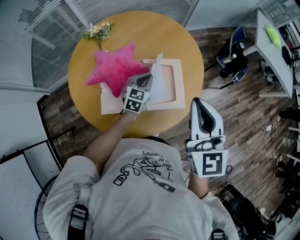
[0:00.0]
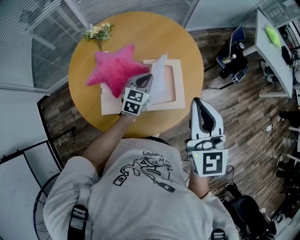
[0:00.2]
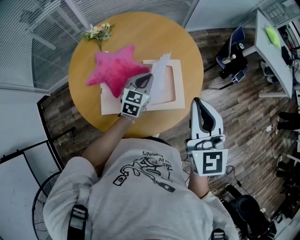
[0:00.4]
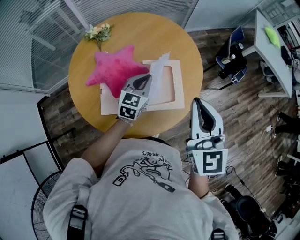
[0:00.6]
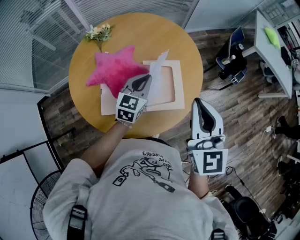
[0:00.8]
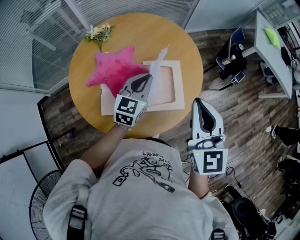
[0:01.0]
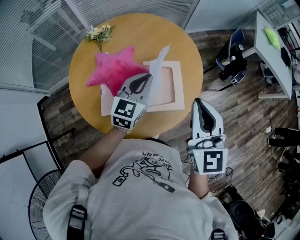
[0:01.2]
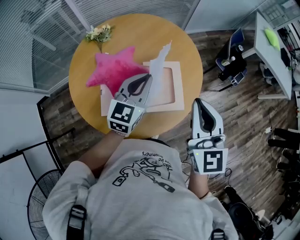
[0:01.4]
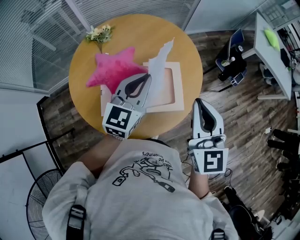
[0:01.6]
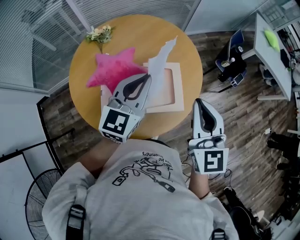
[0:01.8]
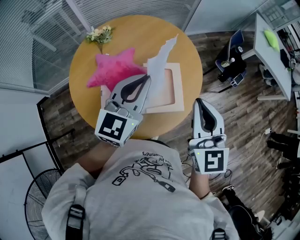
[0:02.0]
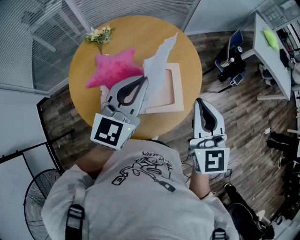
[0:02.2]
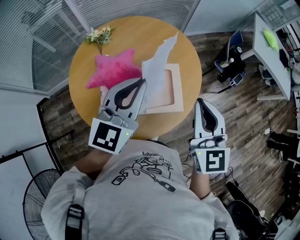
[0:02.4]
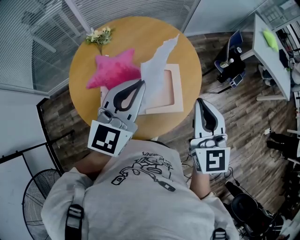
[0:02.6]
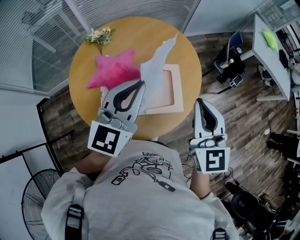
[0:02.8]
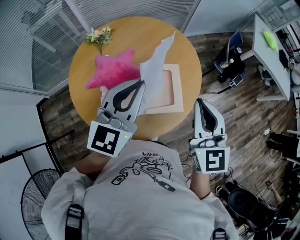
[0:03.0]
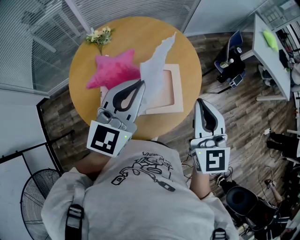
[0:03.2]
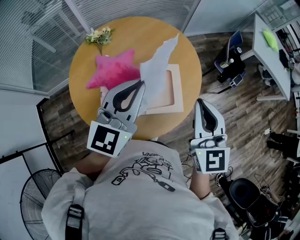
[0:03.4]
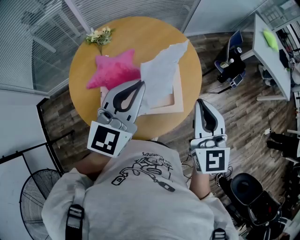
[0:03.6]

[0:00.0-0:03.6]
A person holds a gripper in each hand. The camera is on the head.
0:00.0 to 0:01.8: The left gripper shifts some 25 cm upward, and rotates about 20 degrees.
0:01.8 to 0:03.6: The left gripper goes some 5 cm upward.

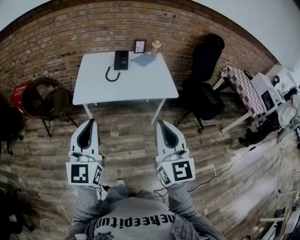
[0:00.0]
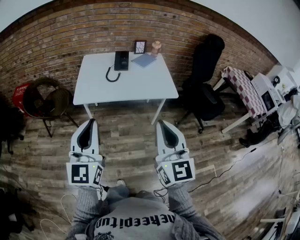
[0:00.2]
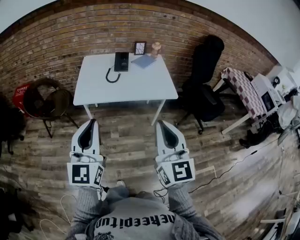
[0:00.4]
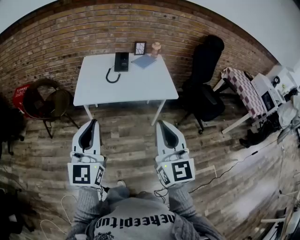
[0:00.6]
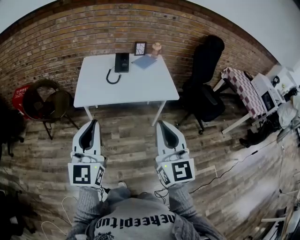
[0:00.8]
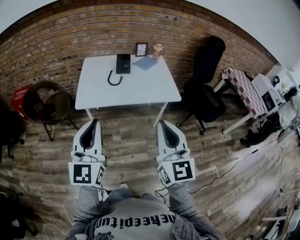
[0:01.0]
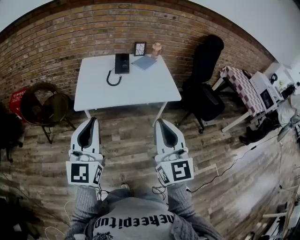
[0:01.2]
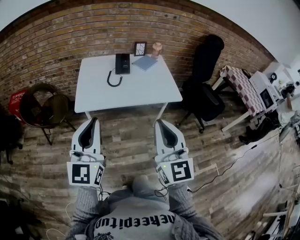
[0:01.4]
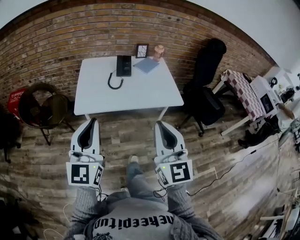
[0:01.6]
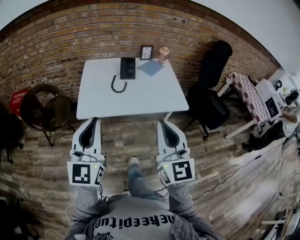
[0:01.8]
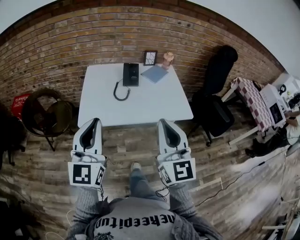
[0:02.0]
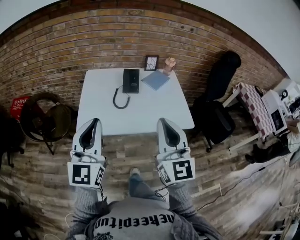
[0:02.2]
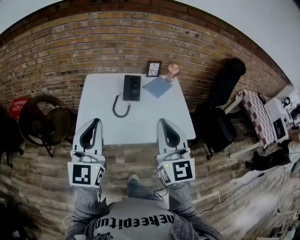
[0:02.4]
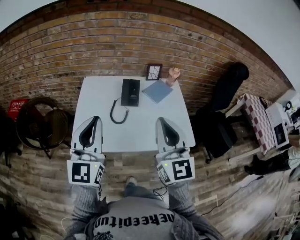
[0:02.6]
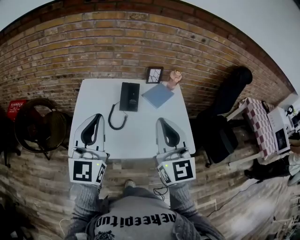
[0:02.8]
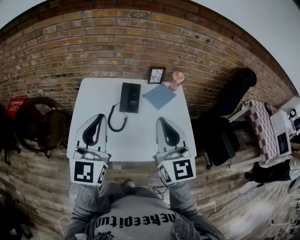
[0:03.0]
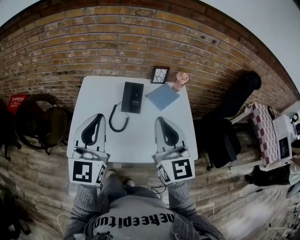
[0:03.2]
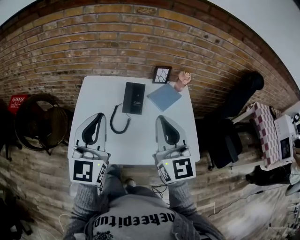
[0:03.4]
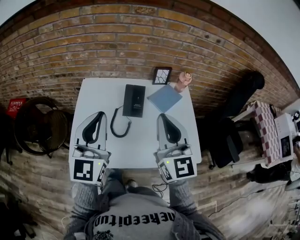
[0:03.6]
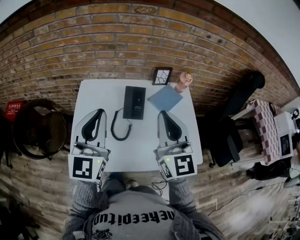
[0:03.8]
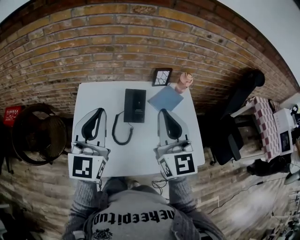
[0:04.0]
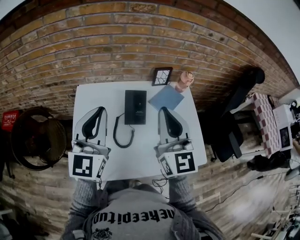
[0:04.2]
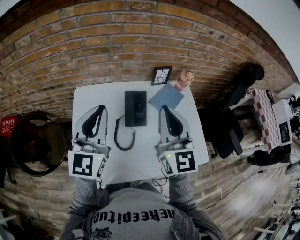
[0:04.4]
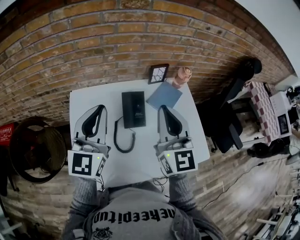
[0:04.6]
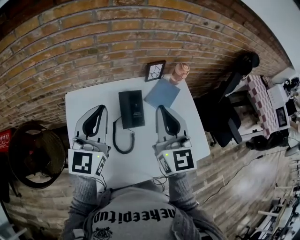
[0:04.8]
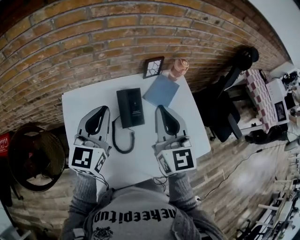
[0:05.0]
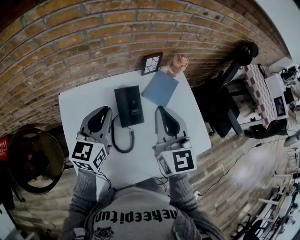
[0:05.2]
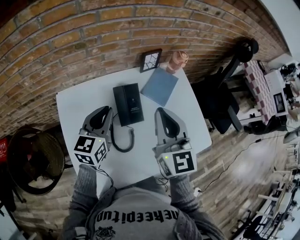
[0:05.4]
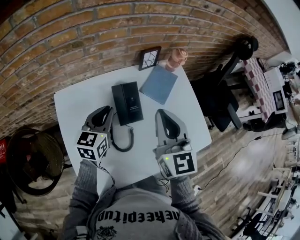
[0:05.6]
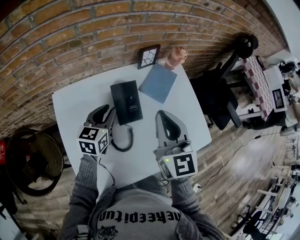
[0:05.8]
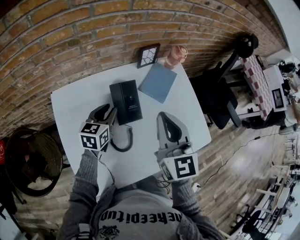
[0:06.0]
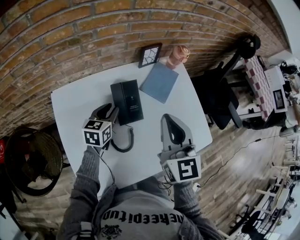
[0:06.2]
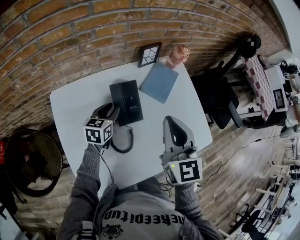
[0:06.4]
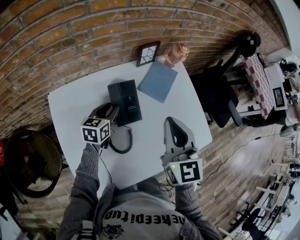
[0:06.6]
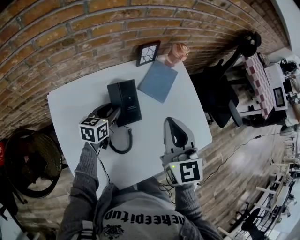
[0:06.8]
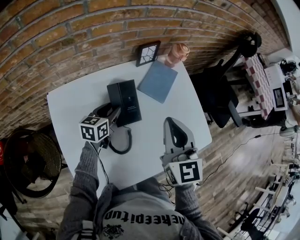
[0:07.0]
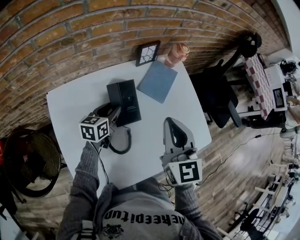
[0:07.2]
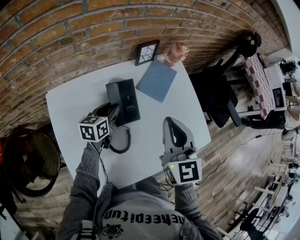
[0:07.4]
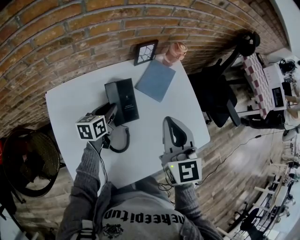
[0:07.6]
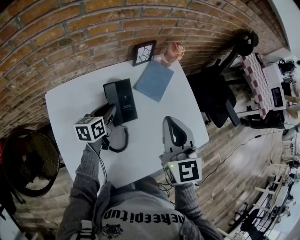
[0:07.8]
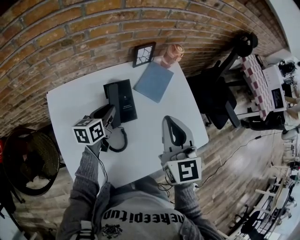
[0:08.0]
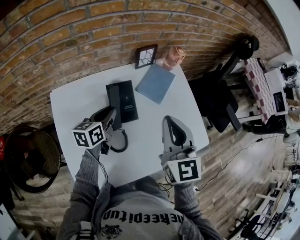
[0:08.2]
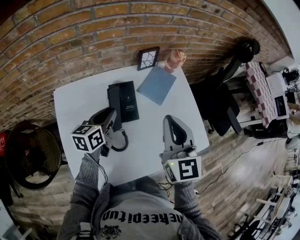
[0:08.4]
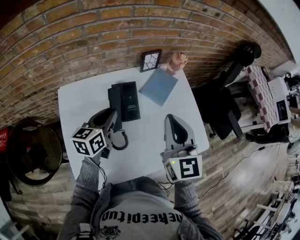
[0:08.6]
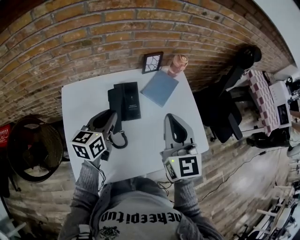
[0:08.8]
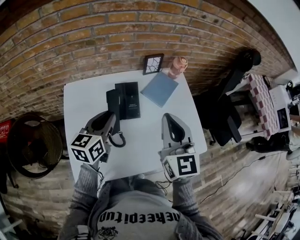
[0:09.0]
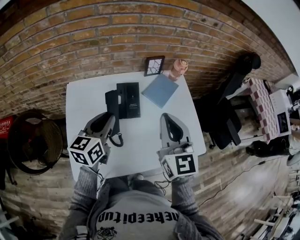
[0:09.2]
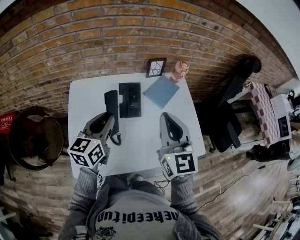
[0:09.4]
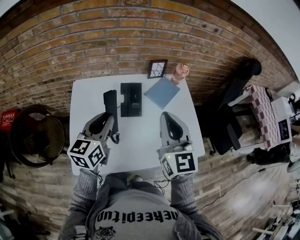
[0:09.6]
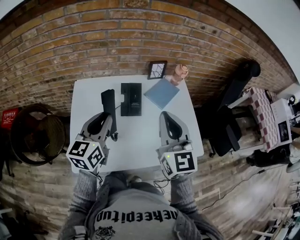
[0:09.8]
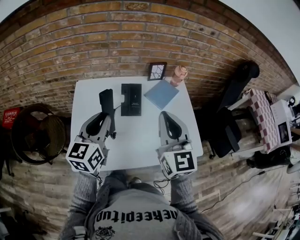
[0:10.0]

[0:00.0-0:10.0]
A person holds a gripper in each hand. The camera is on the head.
0:00.0 to 0:01.4: The right gripper shifts by about 5 cm. Meanwhile the left gripper shifts some 5 cm forward.
0:01.4 to 0:02.8: Both grippers move forward, roughly 35 cm.
0:02.8 to 0:04.2: The two grippers go about 20 cm forward.
0:04.2 to 0:05.8: The left gripper shifts some 30 cm downward and forward, and points its fingers about 30 degrees further downward, while the right gripper moves downward, some 10 cm, and rotates about 20 degrees.
0:05.8 to 0:07.2: The left gripper heads downward, covering about 10 cm.
0:07.2 to 0:08.6: The left gripper goes approximately 15 cm upward and backward; the right gripper ends up roughly 5 cm from where it was.
0:08.6 to 0:10.0: The left gripper heads backward and upward, covering approximately 20 cm, and swivels about 30 degrees, while the right gripper goes roughly 10 cm backward and upward.

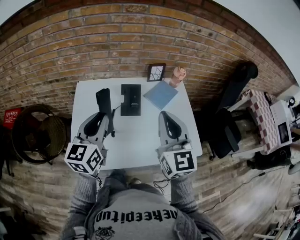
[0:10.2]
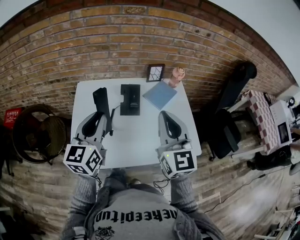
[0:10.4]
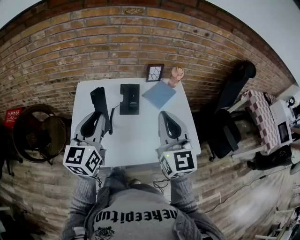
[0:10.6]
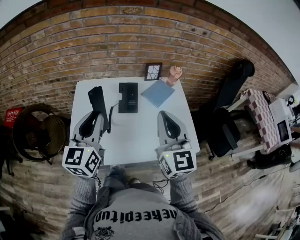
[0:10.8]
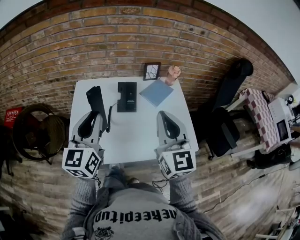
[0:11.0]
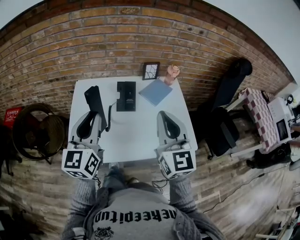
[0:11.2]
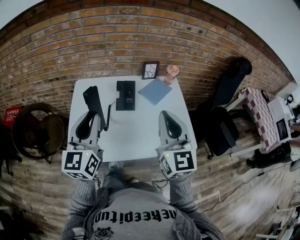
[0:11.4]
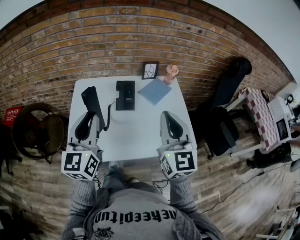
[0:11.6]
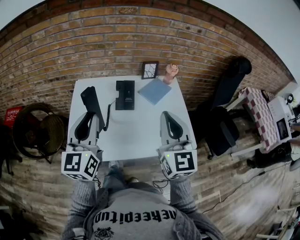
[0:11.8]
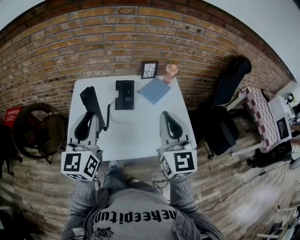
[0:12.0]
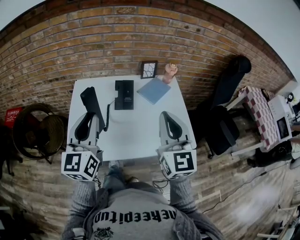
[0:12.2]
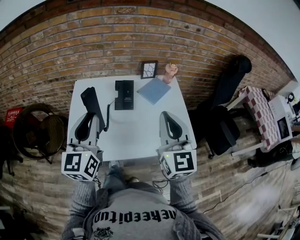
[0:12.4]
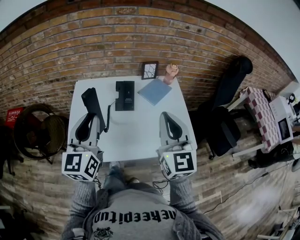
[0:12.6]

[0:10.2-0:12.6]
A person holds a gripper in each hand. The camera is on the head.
0:10.2 to 0:11.4: Both grippers travel together backward, about 5 cm.
0:11.4 to 0:12.6: The grippers move only a little.

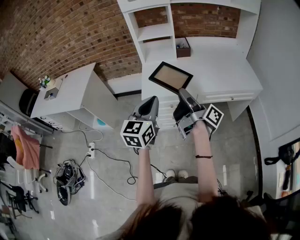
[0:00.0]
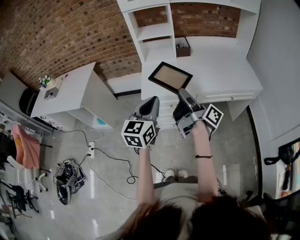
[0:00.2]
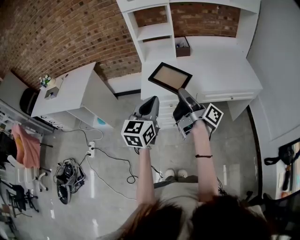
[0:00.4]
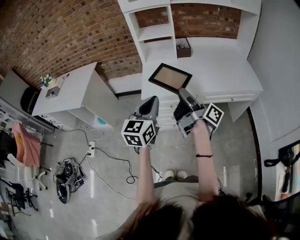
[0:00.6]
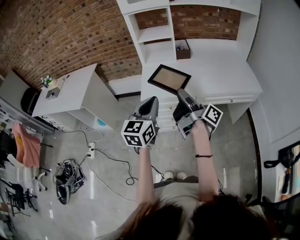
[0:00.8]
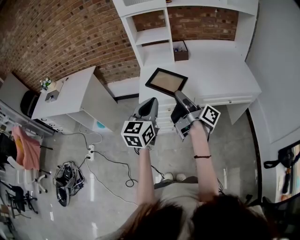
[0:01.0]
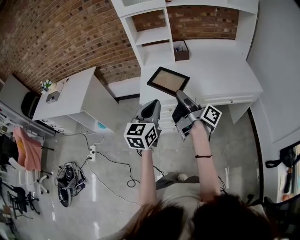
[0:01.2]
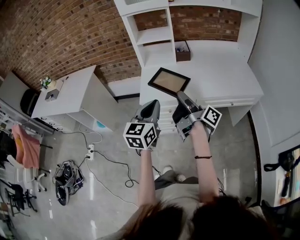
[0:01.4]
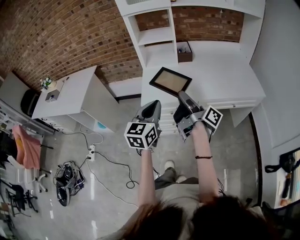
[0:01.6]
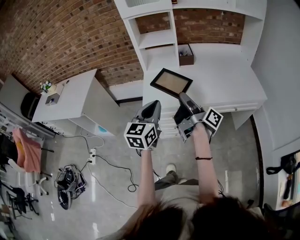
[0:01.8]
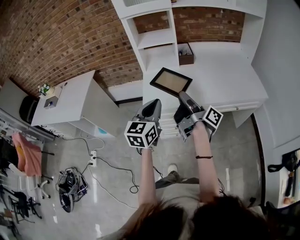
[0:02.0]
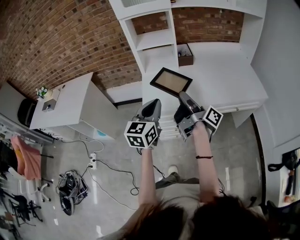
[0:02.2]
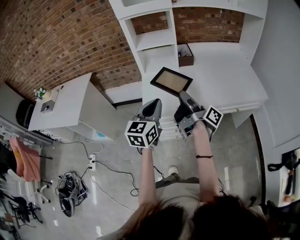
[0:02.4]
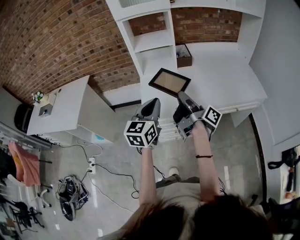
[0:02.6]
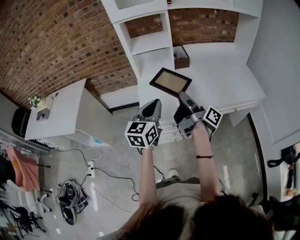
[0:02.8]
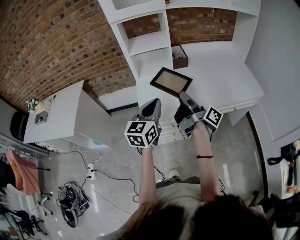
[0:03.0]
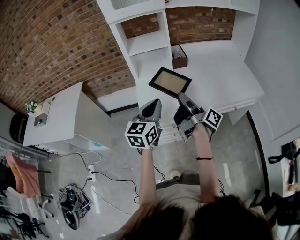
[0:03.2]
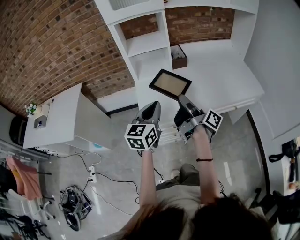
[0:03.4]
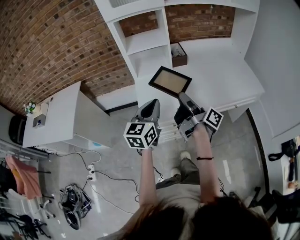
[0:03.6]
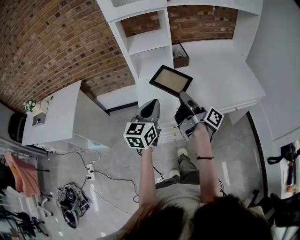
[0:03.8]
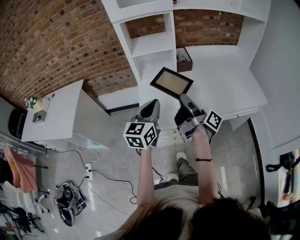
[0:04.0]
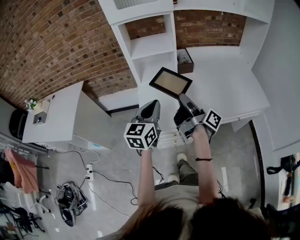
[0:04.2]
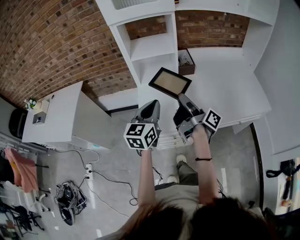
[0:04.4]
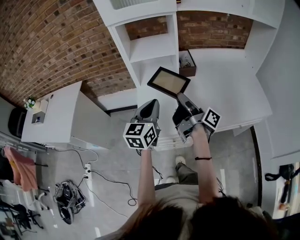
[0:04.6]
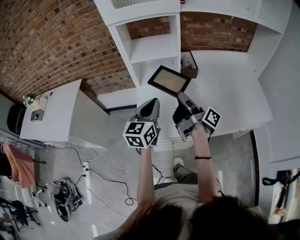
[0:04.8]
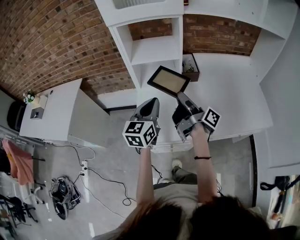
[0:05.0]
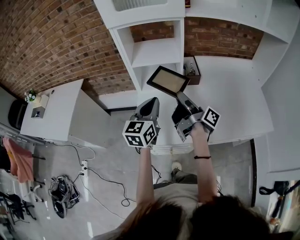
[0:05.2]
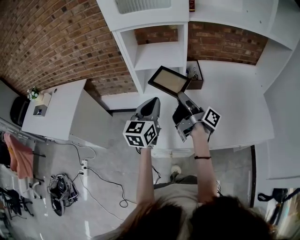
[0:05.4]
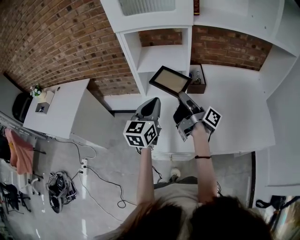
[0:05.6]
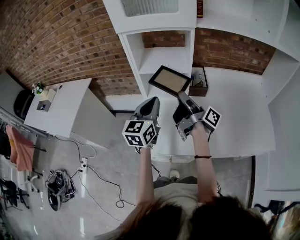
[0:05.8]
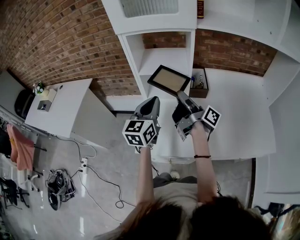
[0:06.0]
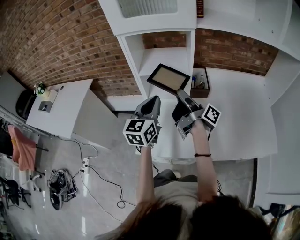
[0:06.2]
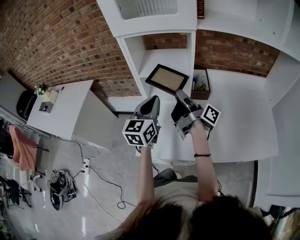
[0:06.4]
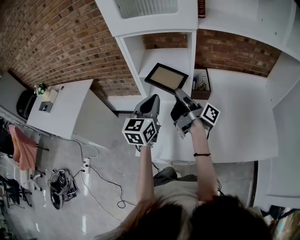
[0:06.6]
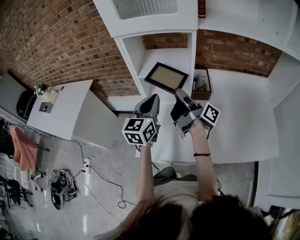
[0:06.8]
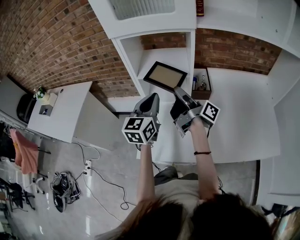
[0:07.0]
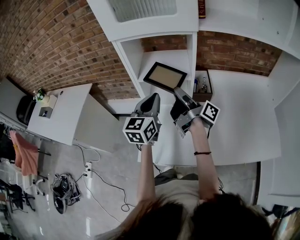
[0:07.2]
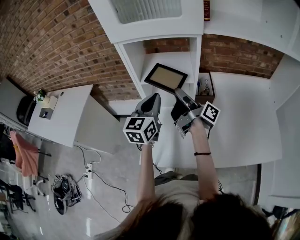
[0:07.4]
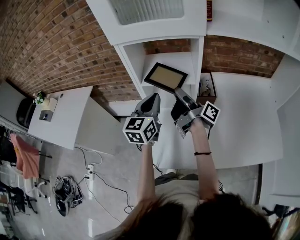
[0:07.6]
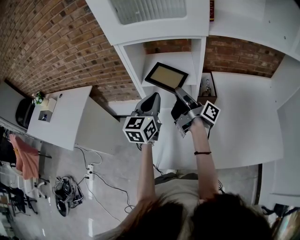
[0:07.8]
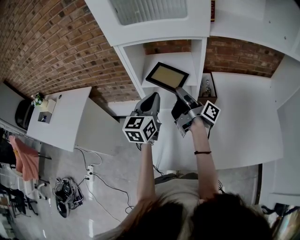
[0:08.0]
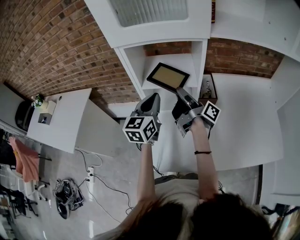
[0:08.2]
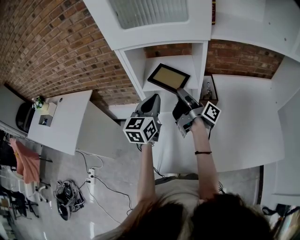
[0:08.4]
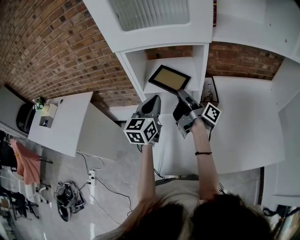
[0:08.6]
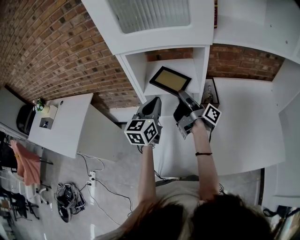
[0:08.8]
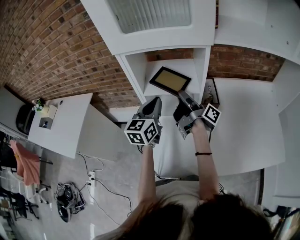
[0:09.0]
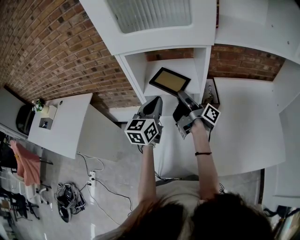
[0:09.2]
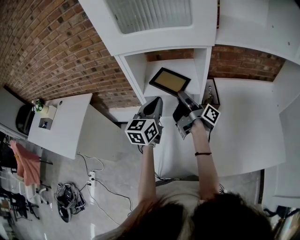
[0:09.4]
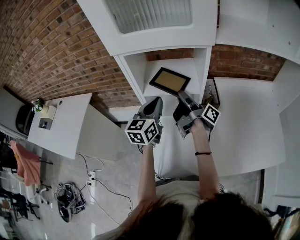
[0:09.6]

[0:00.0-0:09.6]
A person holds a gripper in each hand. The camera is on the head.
0:00.0 to 0:01.6: The left gripper changes place by some 5 cm.
0:01.6 to 0:03.2: The left gripper changes place by roughly 15 cm.
0:03.2 to 0:04.8: The left gripper changes place by some 15 cm.
0:04.8 to 0:06.4: The left gripper changes place by approximately 10 cm.
0:06.4 to 0:08.0: The left gripper shifts by about 10 cm.
